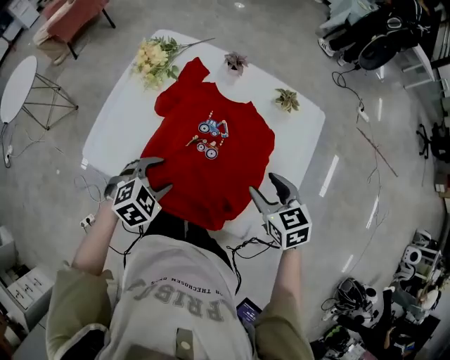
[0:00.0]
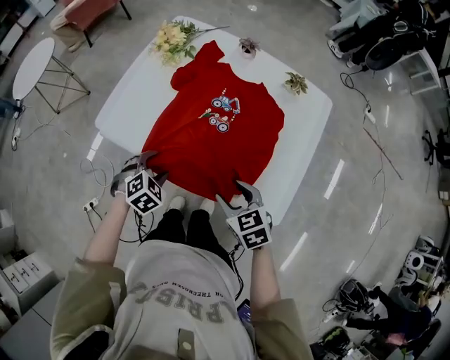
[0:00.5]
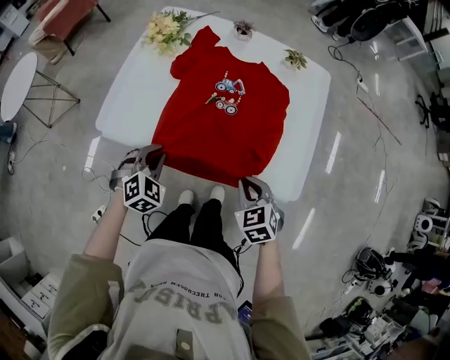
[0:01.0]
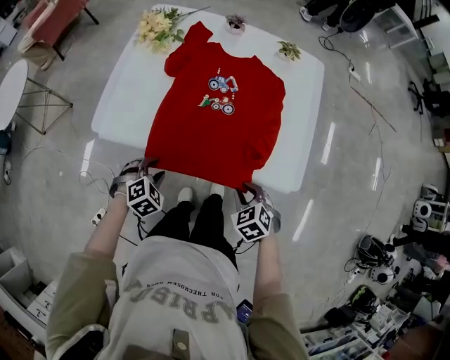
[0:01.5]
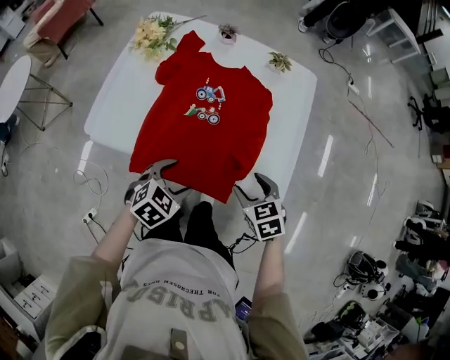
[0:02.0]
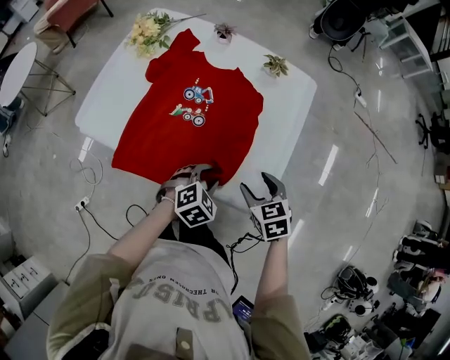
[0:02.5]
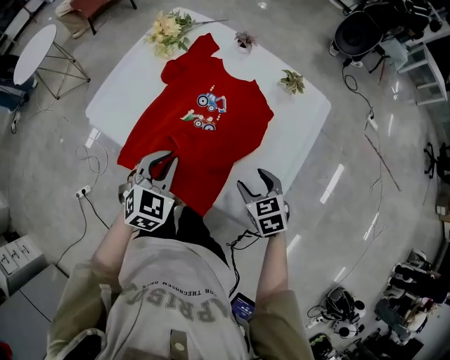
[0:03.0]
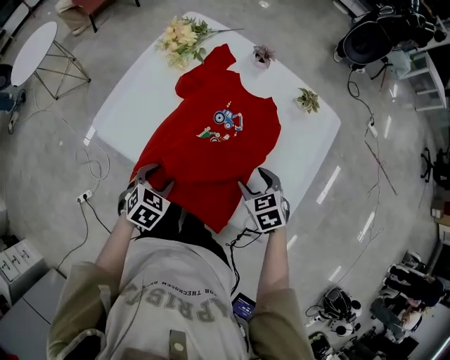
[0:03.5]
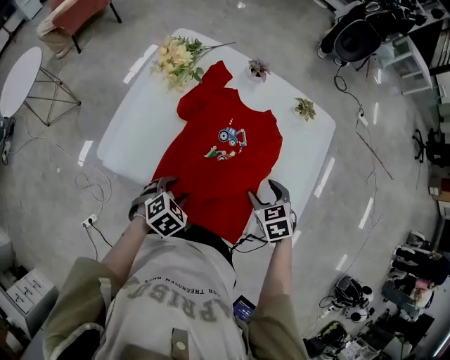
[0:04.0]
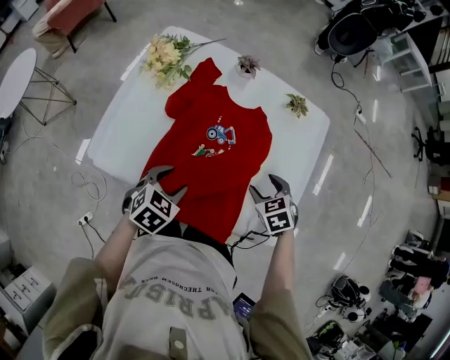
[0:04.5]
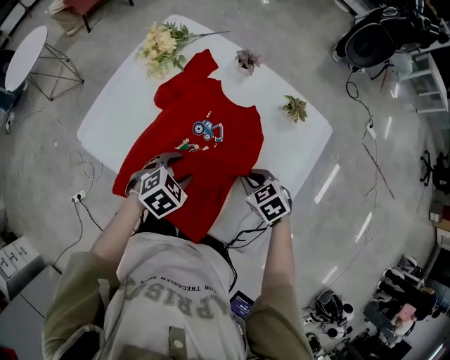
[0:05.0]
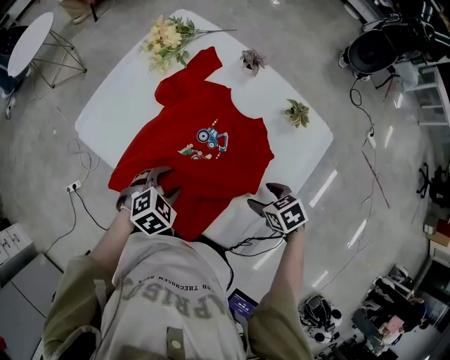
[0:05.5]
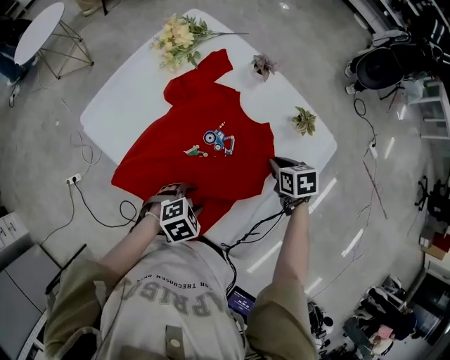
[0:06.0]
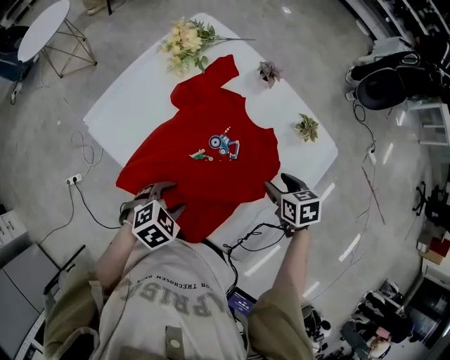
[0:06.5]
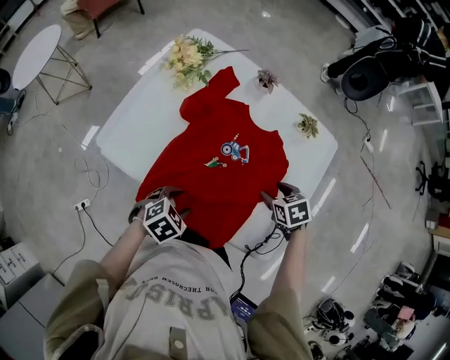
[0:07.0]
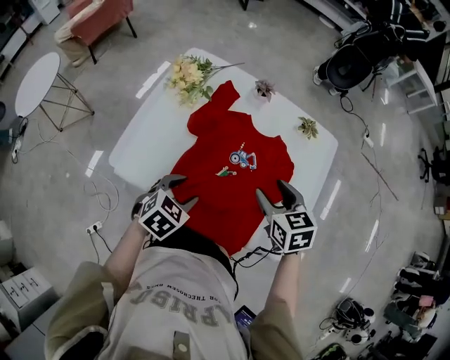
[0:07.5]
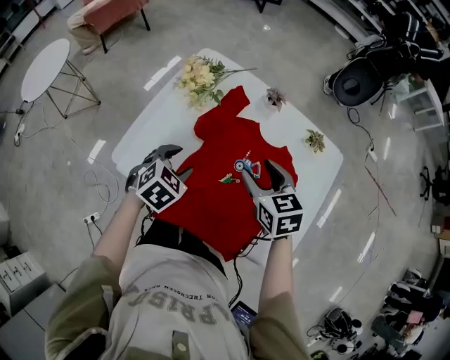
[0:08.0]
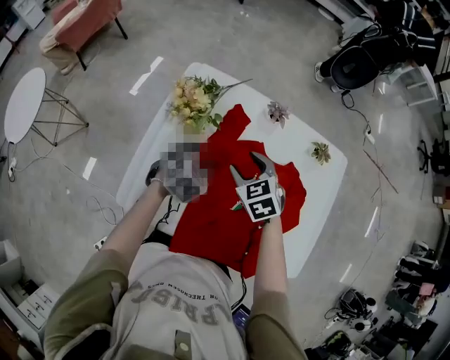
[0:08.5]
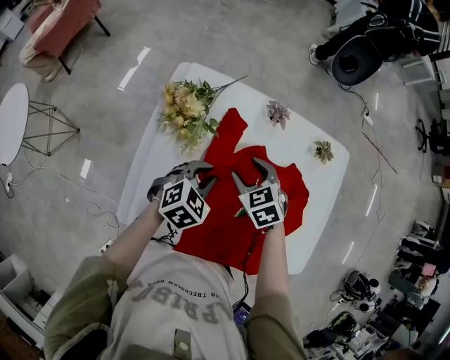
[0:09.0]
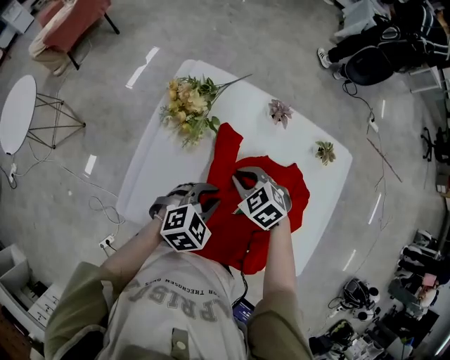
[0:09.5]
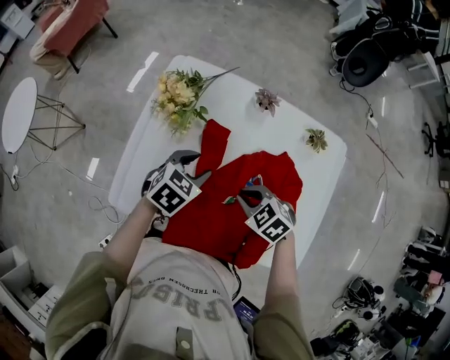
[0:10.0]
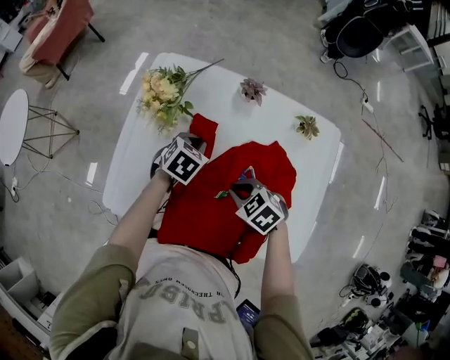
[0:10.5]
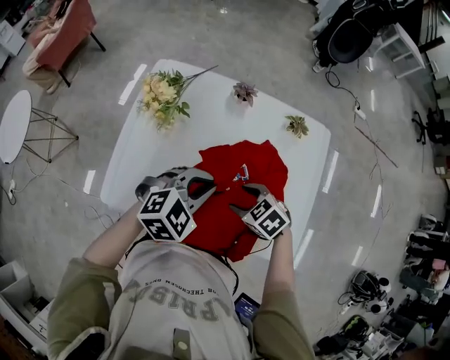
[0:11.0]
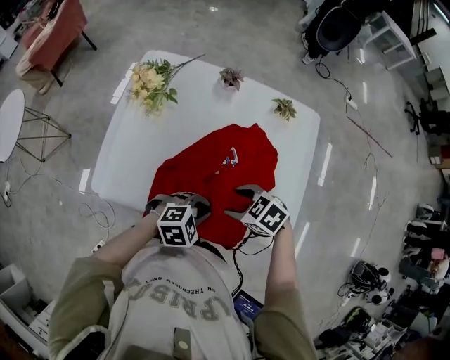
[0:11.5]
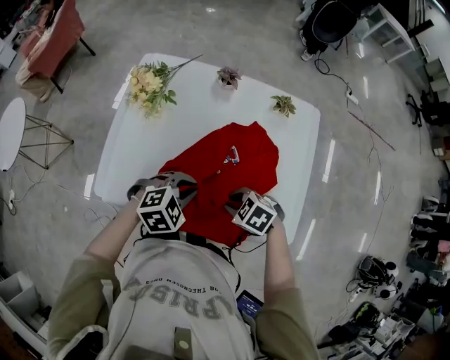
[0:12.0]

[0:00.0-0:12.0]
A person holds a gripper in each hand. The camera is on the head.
0:00.0 to 0:02.0: The left gripper reaches about 10 cm downward, then returns, and closes, then reopens. Meanwhile the right gripper closes and opens again.
0:02.0 to 0:04.0: The left gripper shifts by roughly 10 cm, and closes, then opens again, while the right gripper changes place by some 15 cm.
0:04.0 to 0:06.0: The left gripper ends up about 20 cm from where it was; the right gripper shifts by approximately 20 cm, and closes its fingers.
0:06.0 to 0:08.0: The right gripper shifts approximately 30 cm to the left and upward, changes its angle by about 30 degrees, and opens its fingers. Meanwhile the left gripper shifts roughly 30 cm to the left, forward and upward.
0:08.0 to 0:10.0: The left gripper moves forward and backward over roughly 15 cm, changing direction 2 times, and closes, then opens again, while the right gripper shifts approximately 10 cm downward, travels forward and back again, about 10 cm each way, rotates approximately 30 degrees, and closes.
0:10.0 to 0:12.0: The left gripper moves up and down over some 15 cm, changing direction 2 times, turns by some 40 degrees, and closes. The right gripper moves approximately 15 cm, and opens, then closes once more.

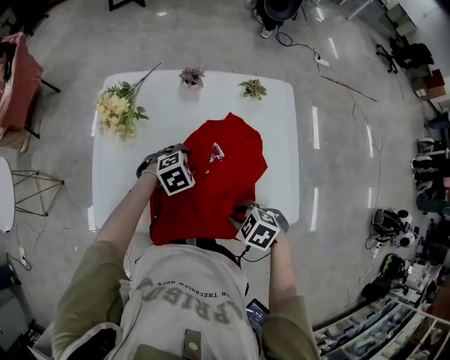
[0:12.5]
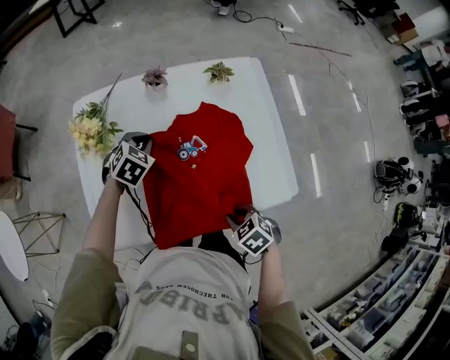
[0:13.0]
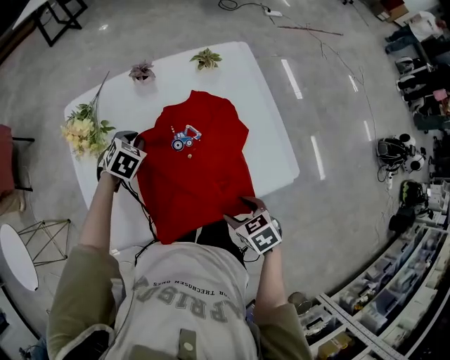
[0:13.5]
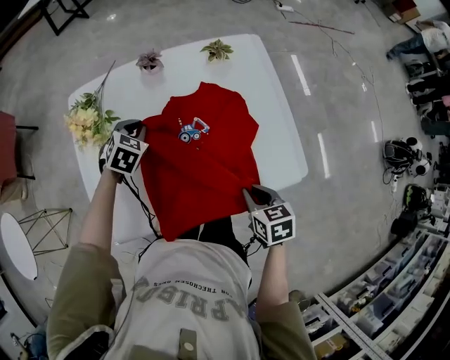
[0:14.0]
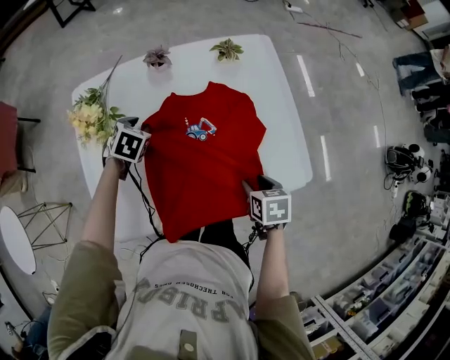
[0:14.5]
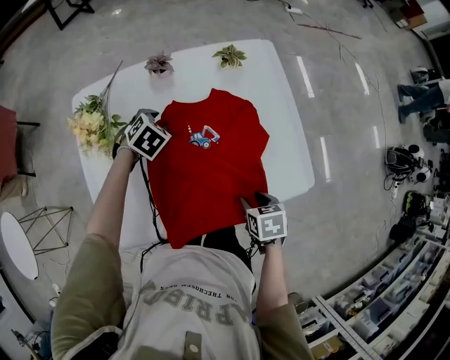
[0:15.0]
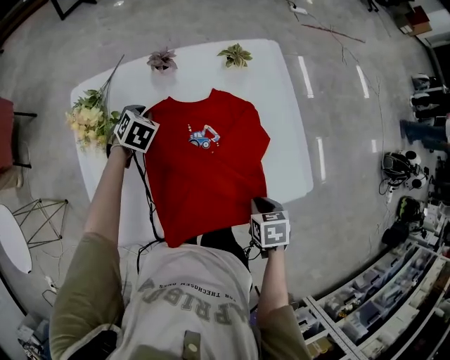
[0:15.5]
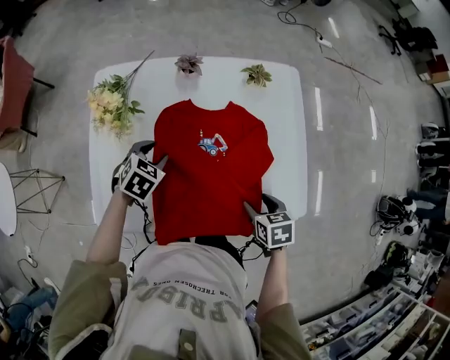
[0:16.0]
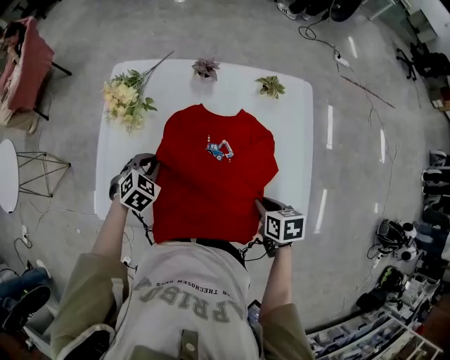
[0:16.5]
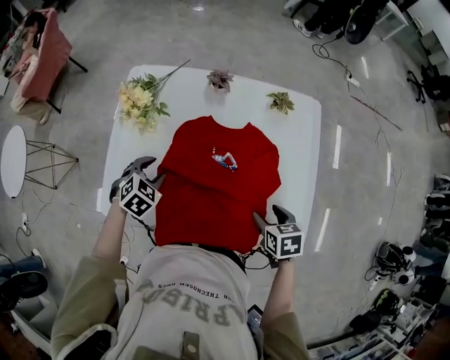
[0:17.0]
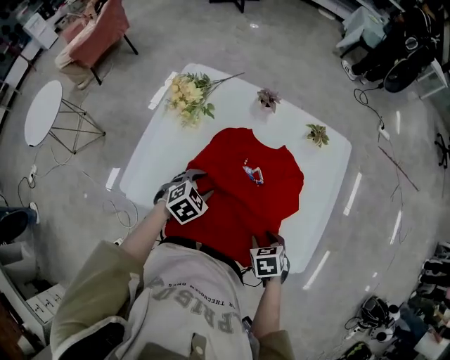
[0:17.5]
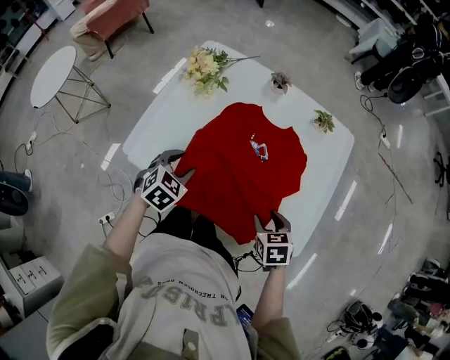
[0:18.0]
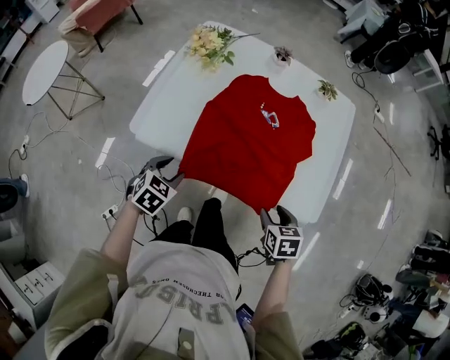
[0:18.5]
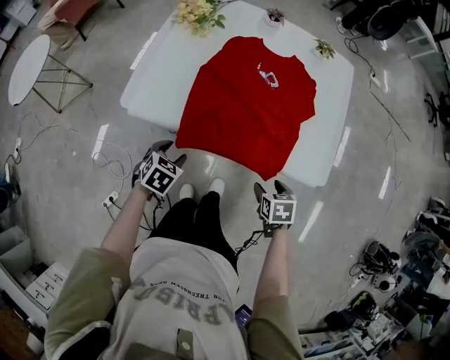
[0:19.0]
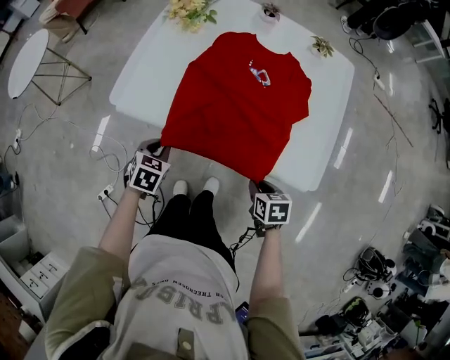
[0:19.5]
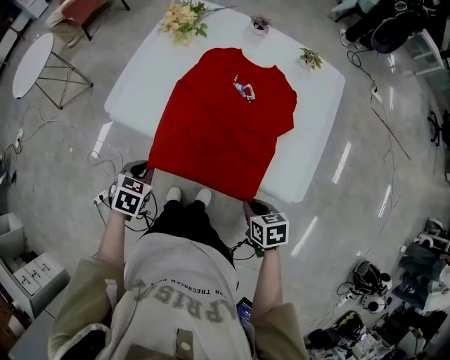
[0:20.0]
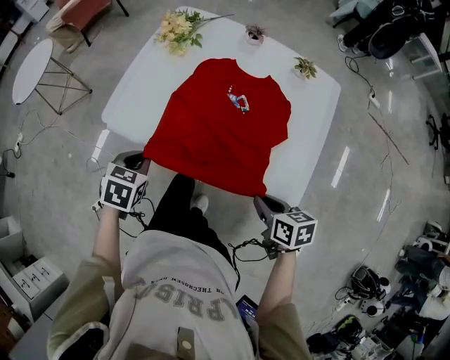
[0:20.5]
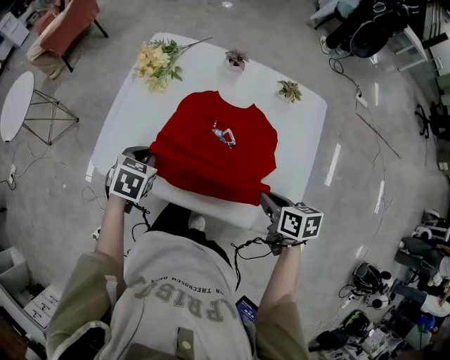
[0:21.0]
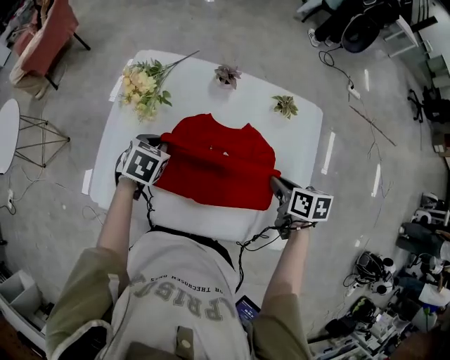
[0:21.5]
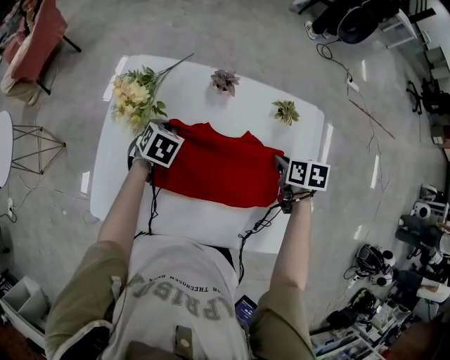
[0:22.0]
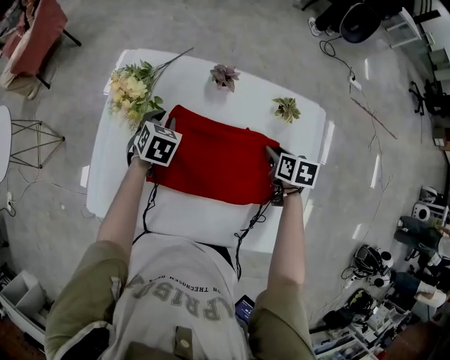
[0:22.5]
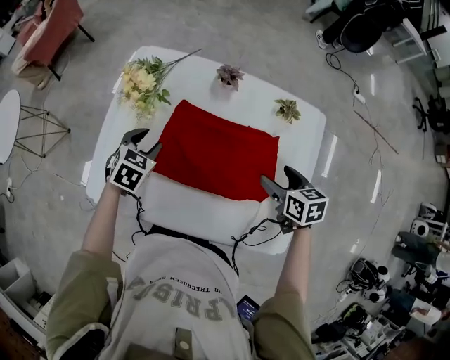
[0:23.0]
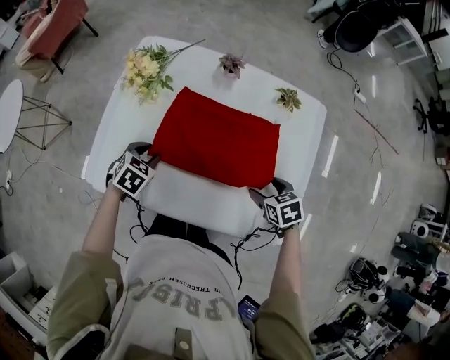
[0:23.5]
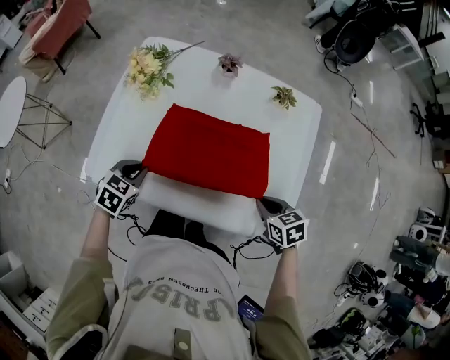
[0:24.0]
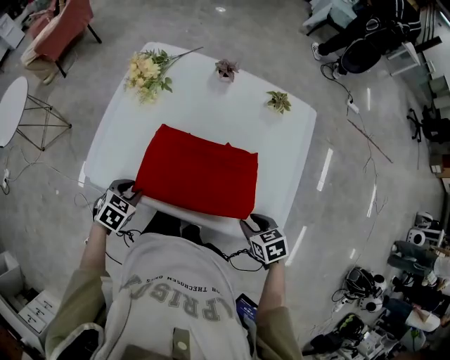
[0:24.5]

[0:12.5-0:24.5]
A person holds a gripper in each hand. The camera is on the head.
0:12.5 to 0:14.5: The right gripper changes place by approximately 10 cm, and rolls clockwise, seen from behind, by approximately 60 degrees; the left gripper ends up some 15 cm from where it was, swivels about 30 degrees, and closes and opens again.
0:14.5 to 0:16.5: The left gripper moves backward, some 10 cm.
0:16.5 to 0:18.5: The left gripper moves backward, some 25 cm, changes its angle by some 20 degrees, and opens, while the right gripper travels backward by some 15 cm, swivels approximately 20 degrees, and opens its fingers.
0:18.5 to 0:20.5: The right gripper reaches roughly 10 cm downward, then returns, rotates roughly 20 degrees, and closes up. Meanwhile the left gripper is displaced upward by about 5 cm, and closes up.
0:20.5 to 0:22.5: The two grippers go some 35 cm forward. The right gripper changes its angle by about 30 degrees.
0:22.5 to 0:24.5: Both grippers move backward, some 30 cm. The right gripper changes its angle by approximately 30 degrees, and opens, then closes again.

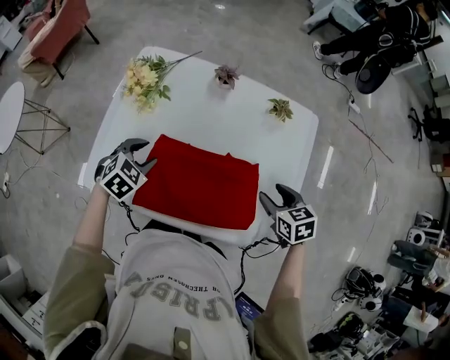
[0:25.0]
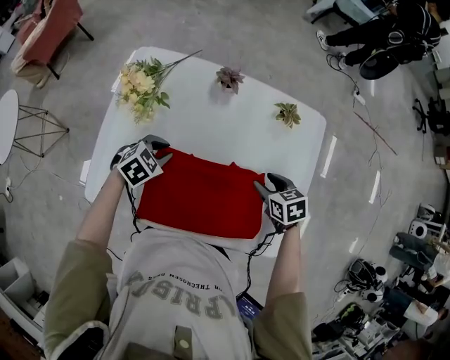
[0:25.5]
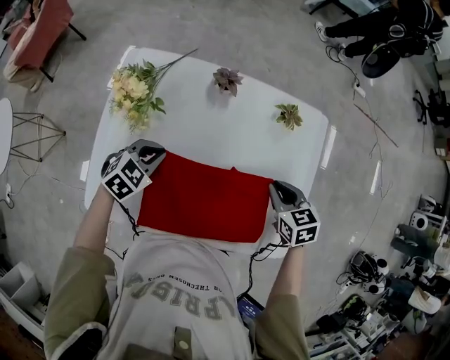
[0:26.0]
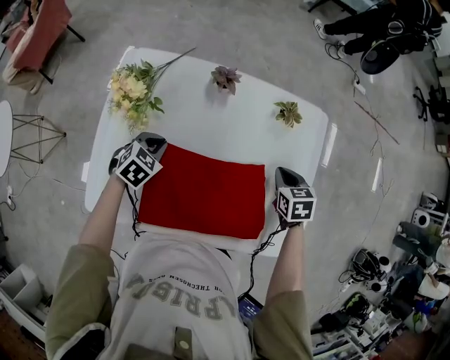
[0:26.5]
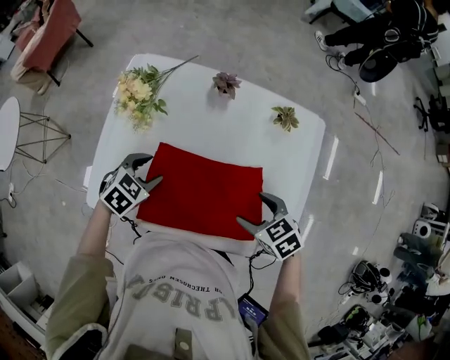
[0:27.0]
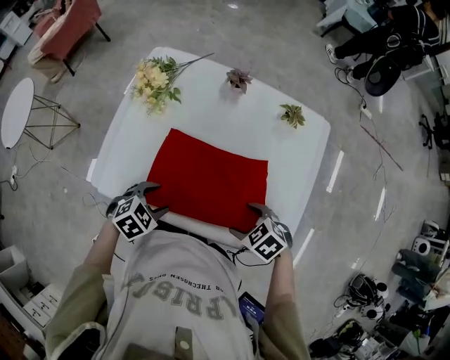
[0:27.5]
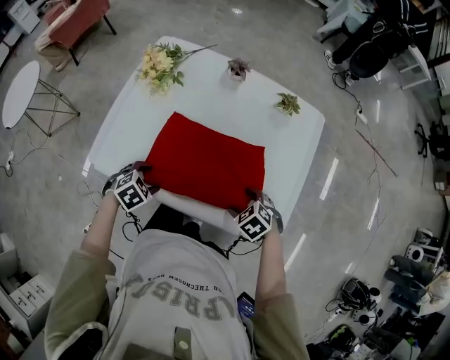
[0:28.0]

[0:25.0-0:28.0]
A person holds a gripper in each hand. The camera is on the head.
0:25.0 to 0:26.5: The grippers both shift forward and downward by some 10 cm. The left gripper closes its fingers; the right gripper closes up.
0:26.5 to 0:28.0: The right gripper shifts by some 25 cm, twists some 40 degrees counterclockwise, seen from behind, and opens; the left gripper shifts by some 25 cm, and opens up.
